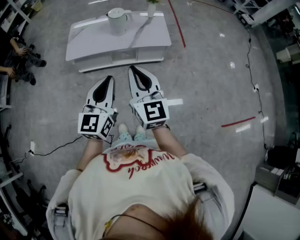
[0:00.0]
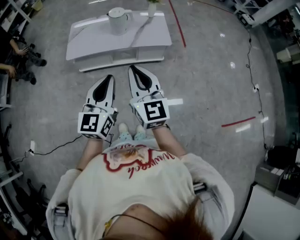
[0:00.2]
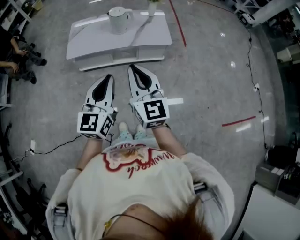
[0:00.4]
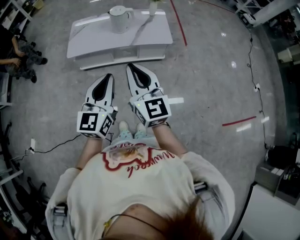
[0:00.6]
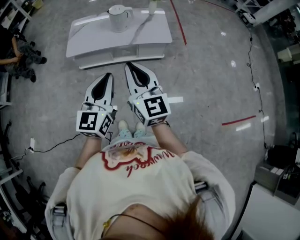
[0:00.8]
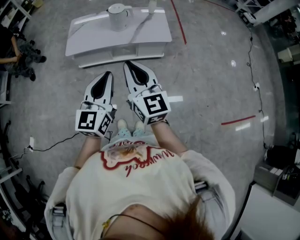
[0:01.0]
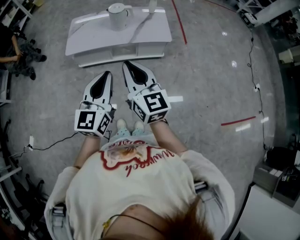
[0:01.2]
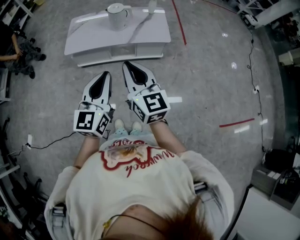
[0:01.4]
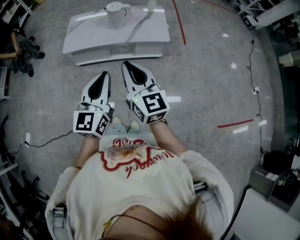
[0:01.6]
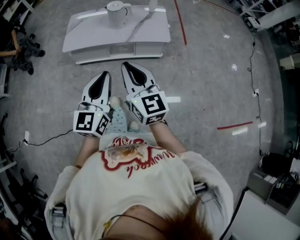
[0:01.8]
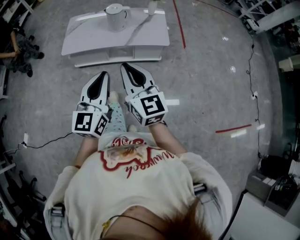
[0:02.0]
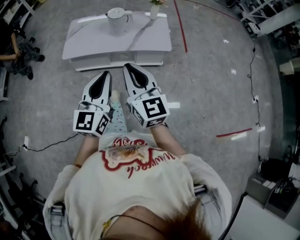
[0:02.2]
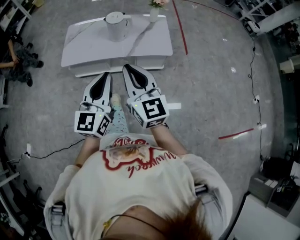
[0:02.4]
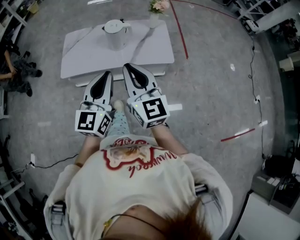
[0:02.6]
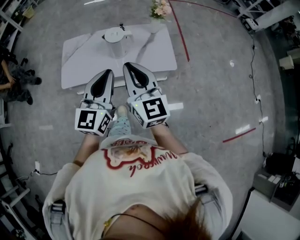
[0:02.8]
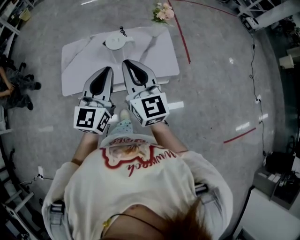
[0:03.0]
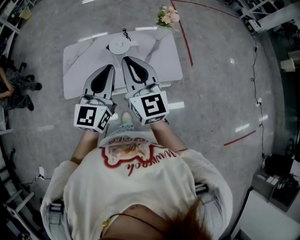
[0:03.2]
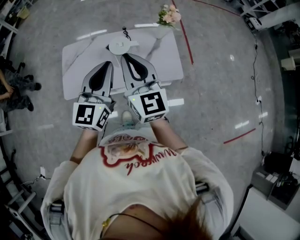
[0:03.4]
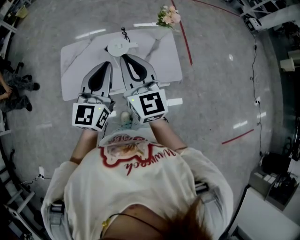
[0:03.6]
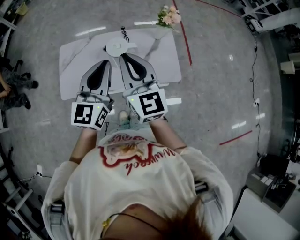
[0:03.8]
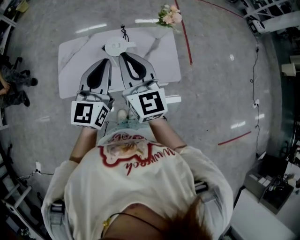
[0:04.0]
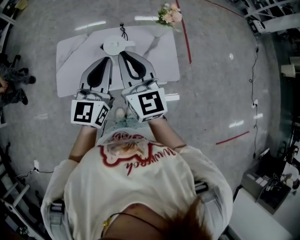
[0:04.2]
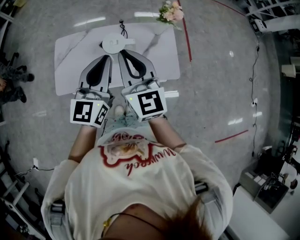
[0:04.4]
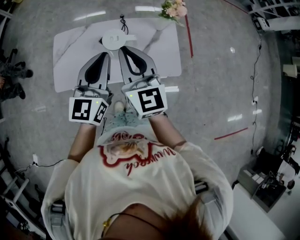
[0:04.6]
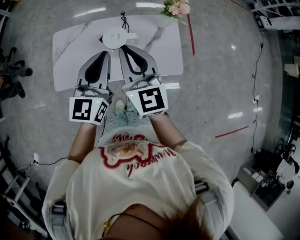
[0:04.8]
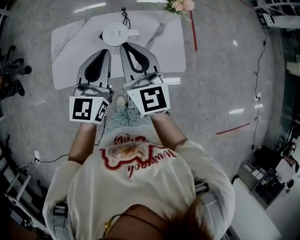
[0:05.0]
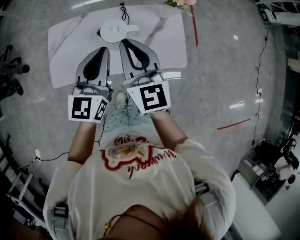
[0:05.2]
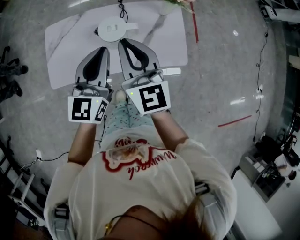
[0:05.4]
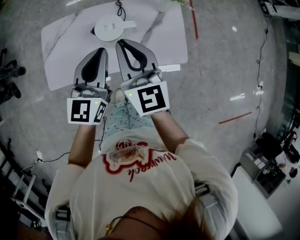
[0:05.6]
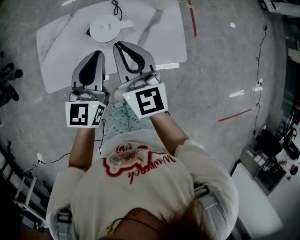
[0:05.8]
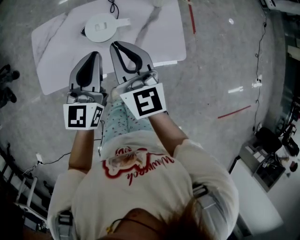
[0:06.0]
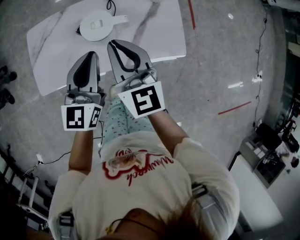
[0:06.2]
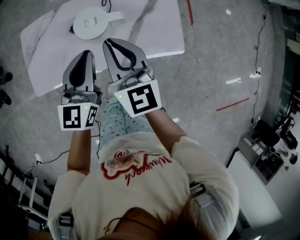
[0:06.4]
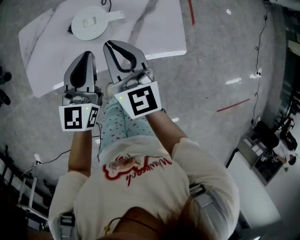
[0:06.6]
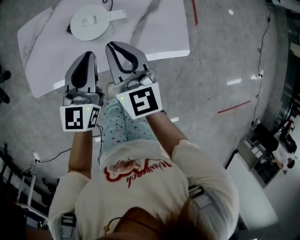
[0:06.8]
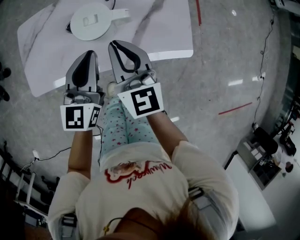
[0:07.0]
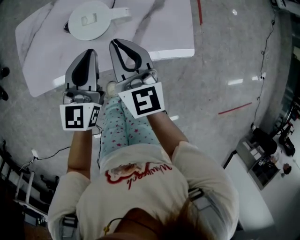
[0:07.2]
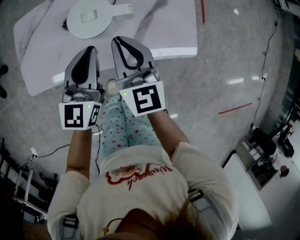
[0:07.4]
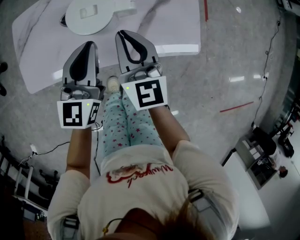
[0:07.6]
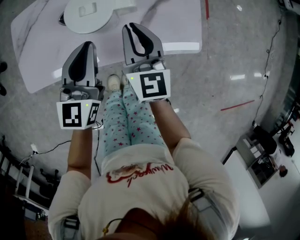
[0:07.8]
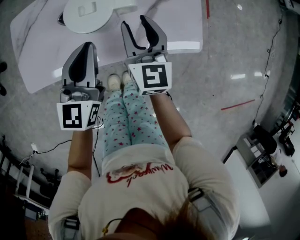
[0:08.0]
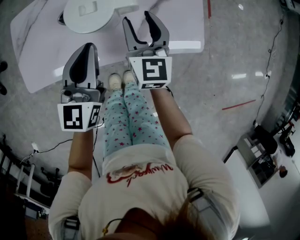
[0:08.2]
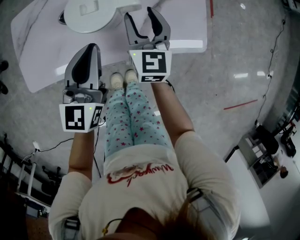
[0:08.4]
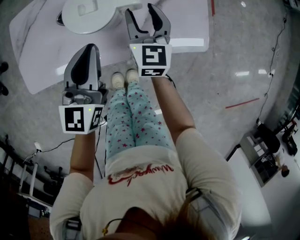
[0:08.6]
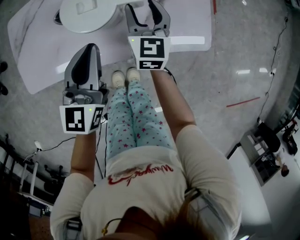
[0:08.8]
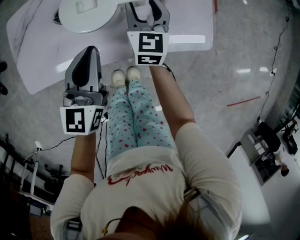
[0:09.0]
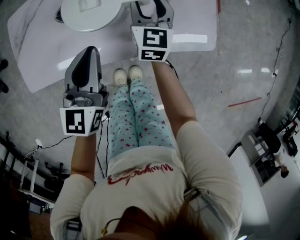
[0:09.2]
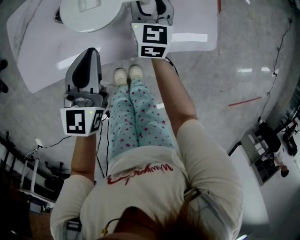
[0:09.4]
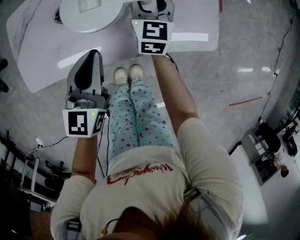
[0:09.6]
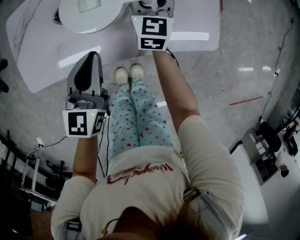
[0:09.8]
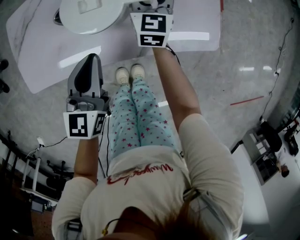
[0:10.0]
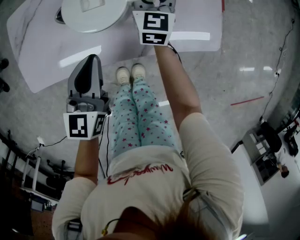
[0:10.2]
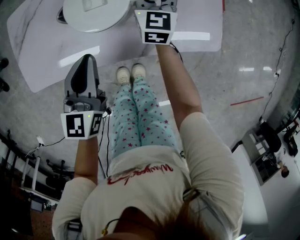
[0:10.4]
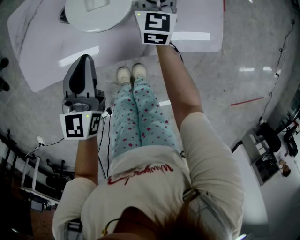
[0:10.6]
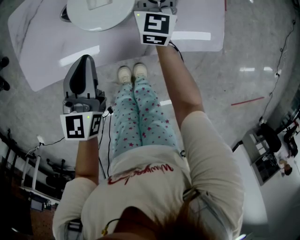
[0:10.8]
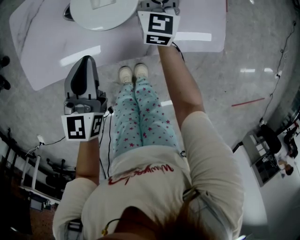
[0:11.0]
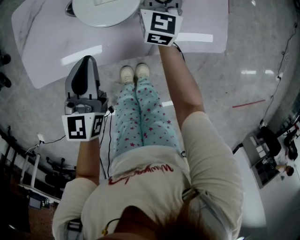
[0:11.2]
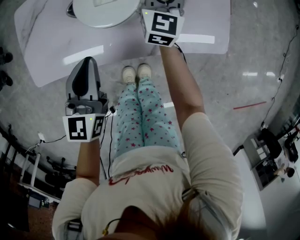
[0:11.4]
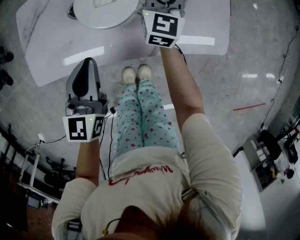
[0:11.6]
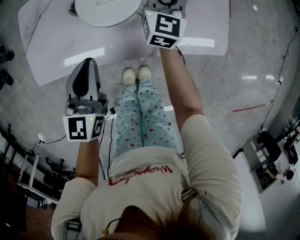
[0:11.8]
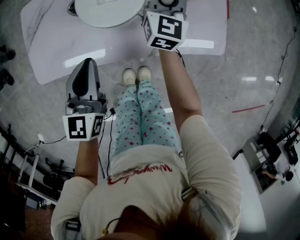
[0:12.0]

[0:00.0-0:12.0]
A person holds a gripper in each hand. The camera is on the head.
0:00.0 to 0:01.6: The grippers stay close to where they were, moving slightly.
0:01.6 to 0:03.0: The two grippers go approximately 35 cm forward.
0:03.0 to 0:04.4: The two grippers go approximately 15 cm forward.
0:04.4 to 0:06.0: Both grippers move downward and forward, some 15 cm.
0:06.0 to 0:07.6: The grippers both shift downward by approximately 15 cm.
0:07.6 to 0:09.0: The right gripper goes some 15 cm downward and forward, and opens.
0:09.0 to 0:10.4: The right gripper is displaced forward by roughly 5 cm.
0:10.4 to 0:12.0: The right gripper travels upward by some 5 cm, and closes its fingers.

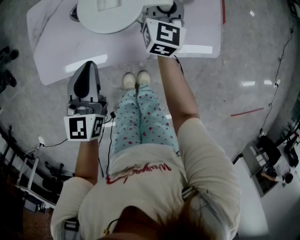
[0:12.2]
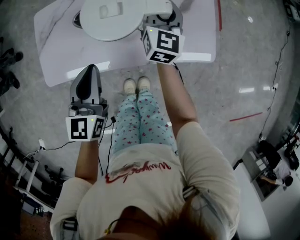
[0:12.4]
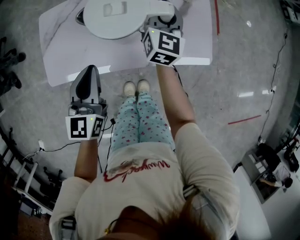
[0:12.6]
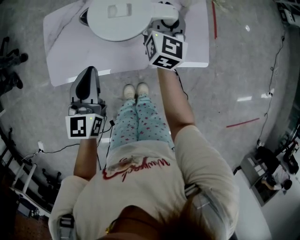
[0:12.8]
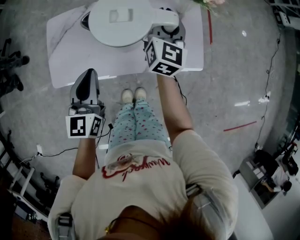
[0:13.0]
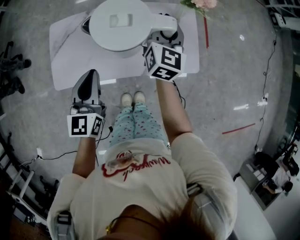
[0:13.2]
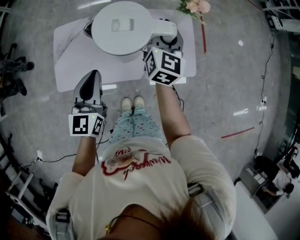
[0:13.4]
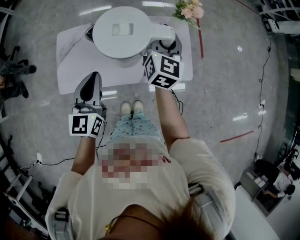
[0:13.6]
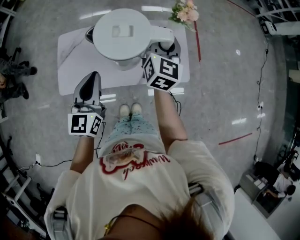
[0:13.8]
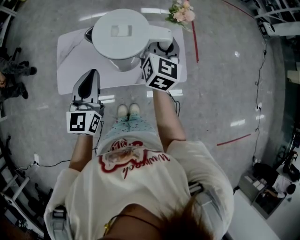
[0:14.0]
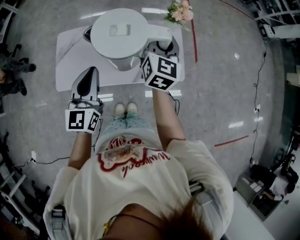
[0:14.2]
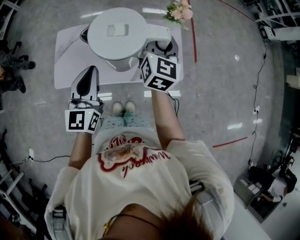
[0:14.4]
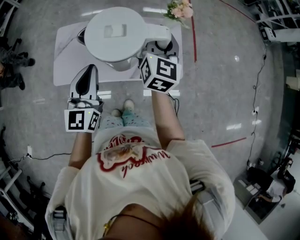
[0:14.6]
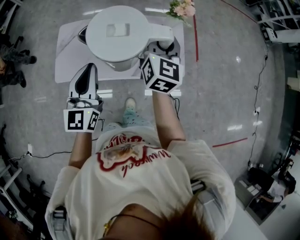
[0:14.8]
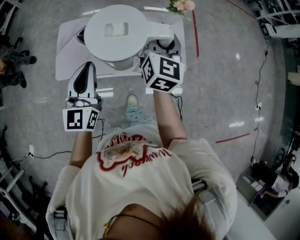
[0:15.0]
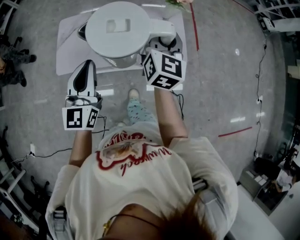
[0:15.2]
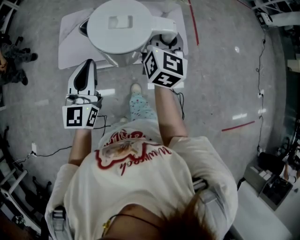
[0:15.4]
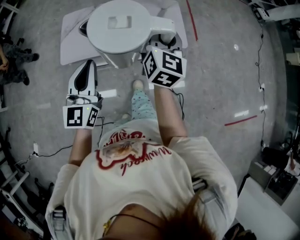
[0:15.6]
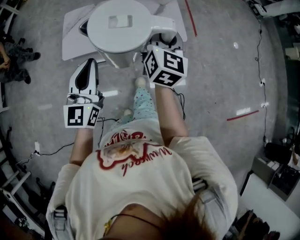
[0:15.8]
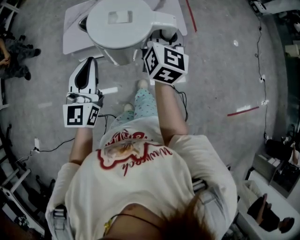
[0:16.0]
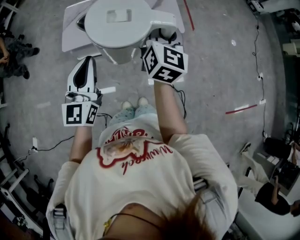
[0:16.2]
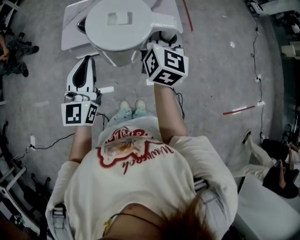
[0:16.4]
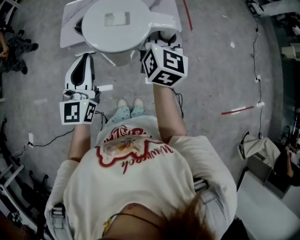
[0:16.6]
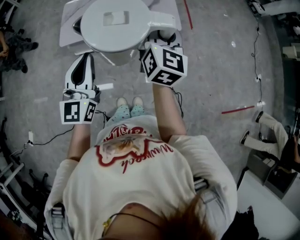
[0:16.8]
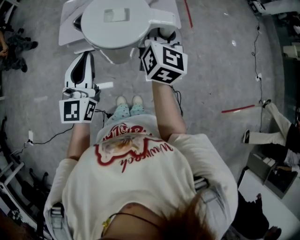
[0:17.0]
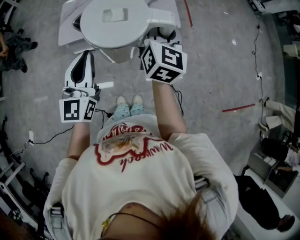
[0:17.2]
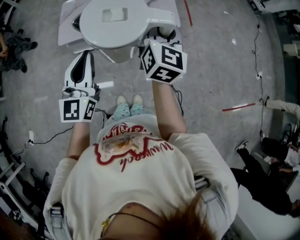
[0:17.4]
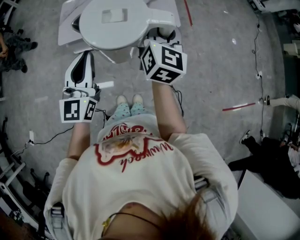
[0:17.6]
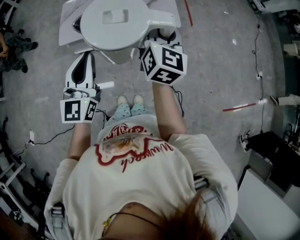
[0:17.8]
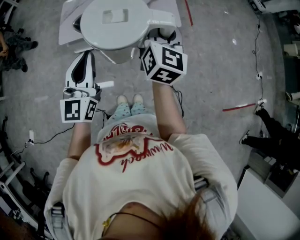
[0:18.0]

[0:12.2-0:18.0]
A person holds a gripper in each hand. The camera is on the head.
0:12.2 to 0:13.6: The grippers both shift upward by roughly 20 cm.
0:13.6 to 0:15.0: Both grippers move backward and upward, approximately 10 cm.
0:15.0 to 0:16.6: The grippers both shift backward by some 30 cm.
0:16.6 to 0:18.0: The grippers make only small movements.

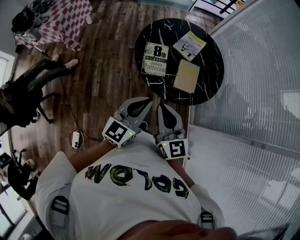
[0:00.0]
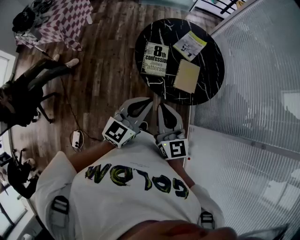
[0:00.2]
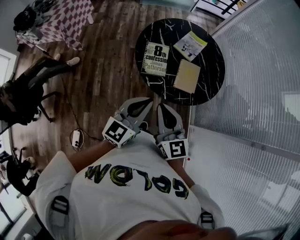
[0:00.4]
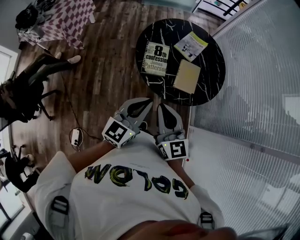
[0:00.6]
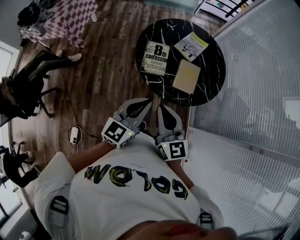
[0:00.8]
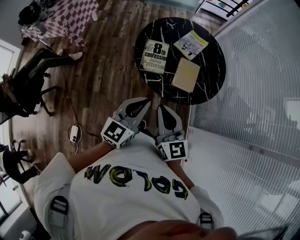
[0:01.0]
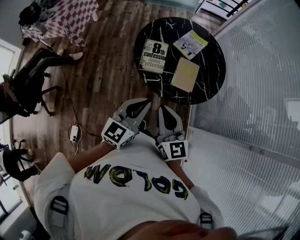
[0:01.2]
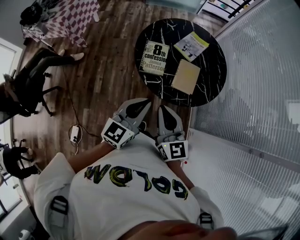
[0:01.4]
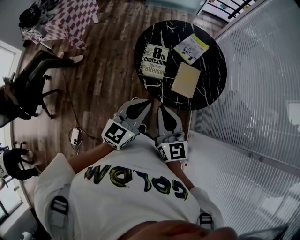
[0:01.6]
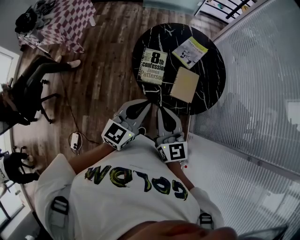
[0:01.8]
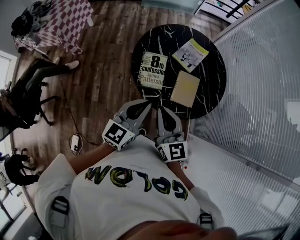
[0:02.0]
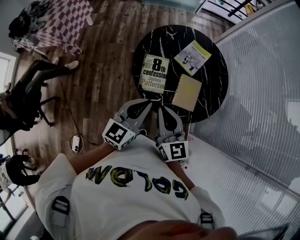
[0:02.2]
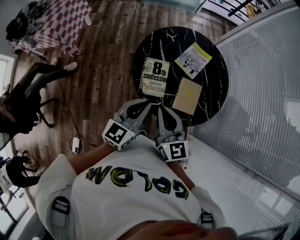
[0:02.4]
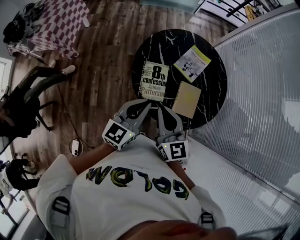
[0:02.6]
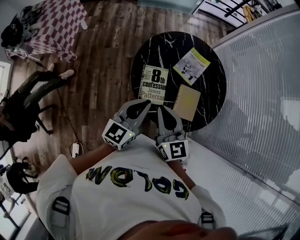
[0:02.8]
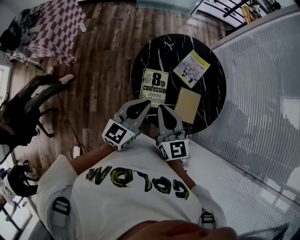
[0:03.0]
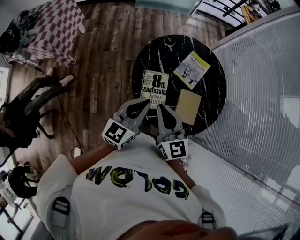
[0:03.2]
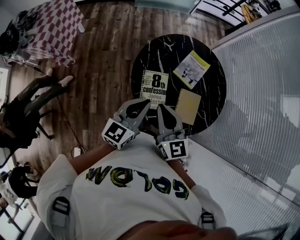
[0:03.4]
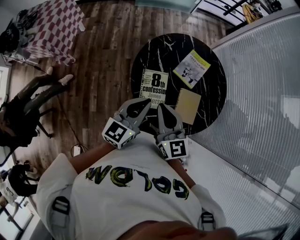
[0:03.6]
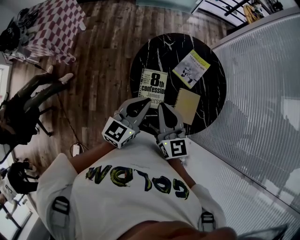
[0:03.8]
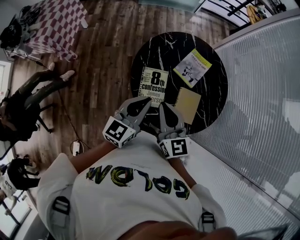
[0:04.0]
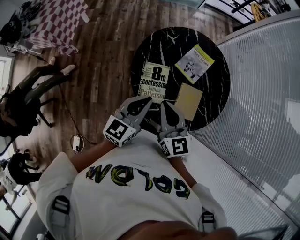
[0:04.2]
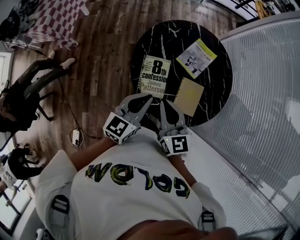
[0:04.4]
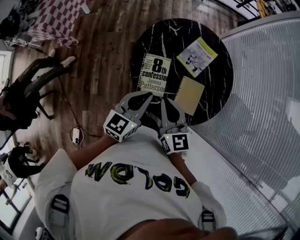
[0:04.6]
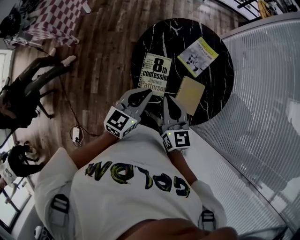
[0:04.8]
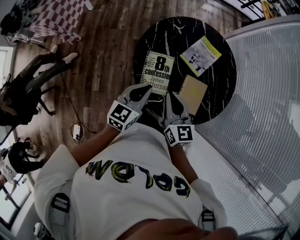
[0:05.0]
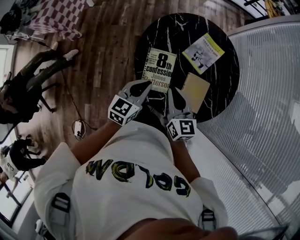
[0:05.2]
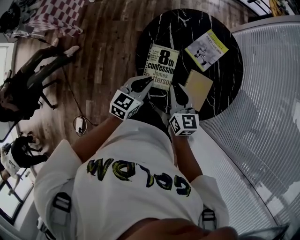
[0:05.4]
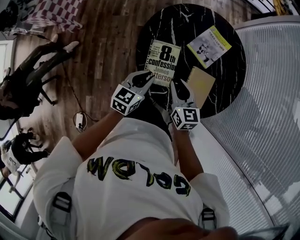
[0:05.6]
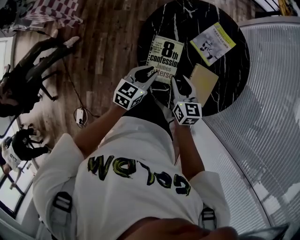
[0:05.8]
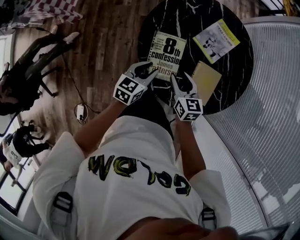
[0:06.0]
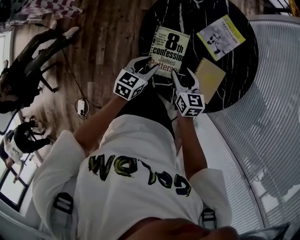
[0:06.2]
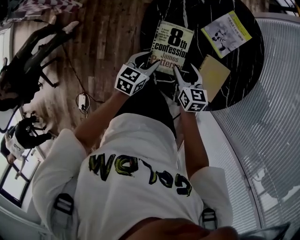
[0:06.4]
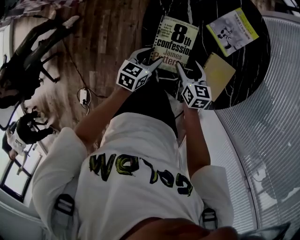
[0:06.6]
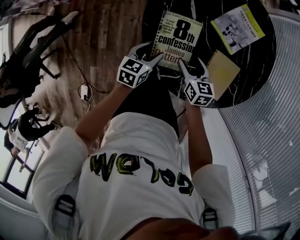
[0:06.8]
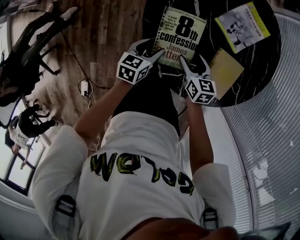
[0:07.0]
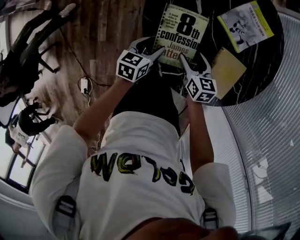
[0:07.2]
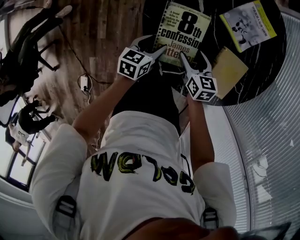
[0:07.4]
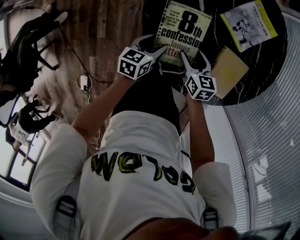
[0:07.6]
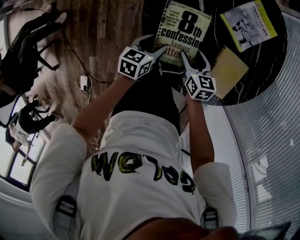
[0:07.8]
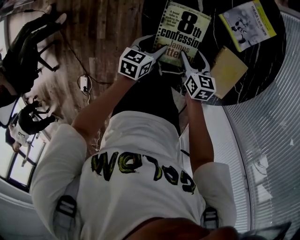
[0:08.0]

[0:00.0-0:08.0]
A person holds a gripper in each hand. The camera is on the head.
0:00.0 to 0:01.6: The left gripper ends up some 5 cm from where it was; the right gripper goes about 5 cm to the right.
0:01.6 to 0:03.2: The grippers both shift forward and to the left by some 25 cm.
0:03.2 to 0:04.8: The right gripper heads downward and to the right, covering about 10 cm; the left gripper shifts roughly 5 cm downward.
0:04.8 to 0:06.4: The two grippers go roughly 25 cm downward. The right gripper rotates approximately 20 degrees, and opens up; the left gripper turns by about 20 degrees, and opens its fingers.
0:06.4 to 0:08.0: The grippers both shift downward by some 10 cm.
